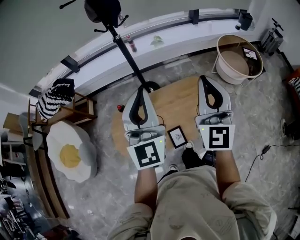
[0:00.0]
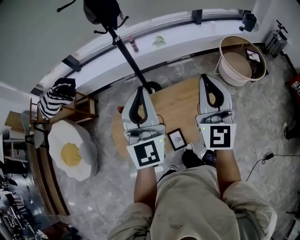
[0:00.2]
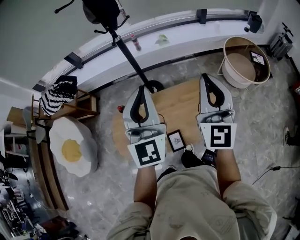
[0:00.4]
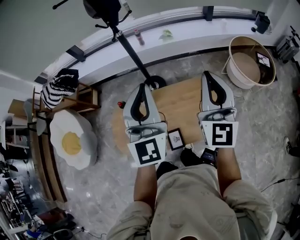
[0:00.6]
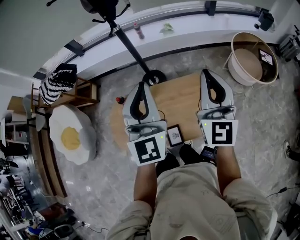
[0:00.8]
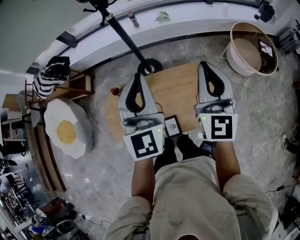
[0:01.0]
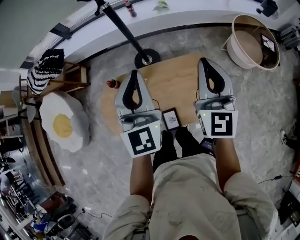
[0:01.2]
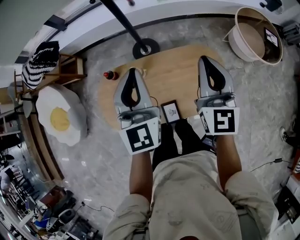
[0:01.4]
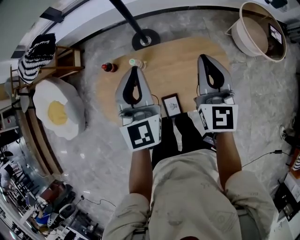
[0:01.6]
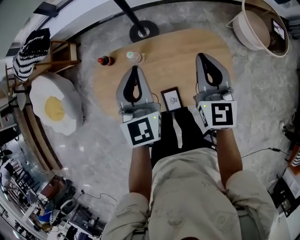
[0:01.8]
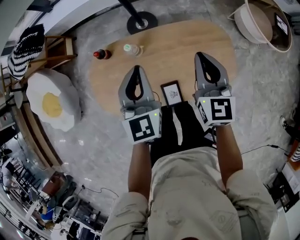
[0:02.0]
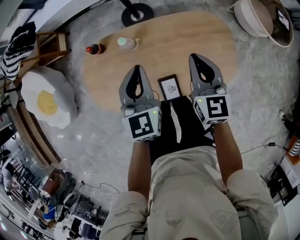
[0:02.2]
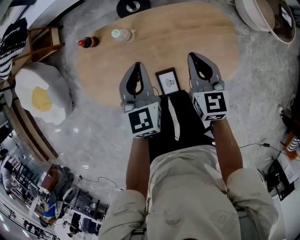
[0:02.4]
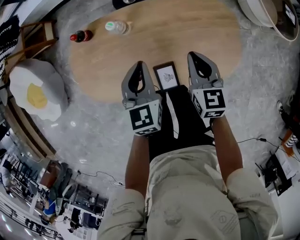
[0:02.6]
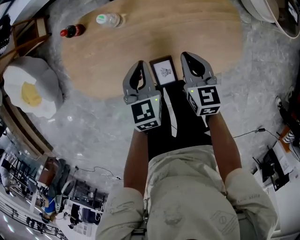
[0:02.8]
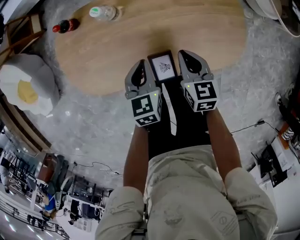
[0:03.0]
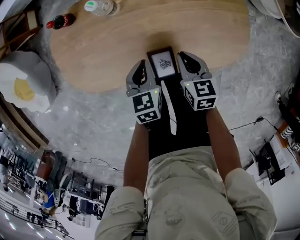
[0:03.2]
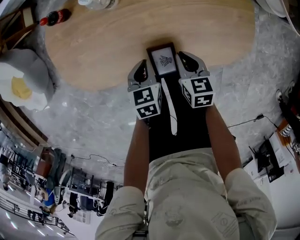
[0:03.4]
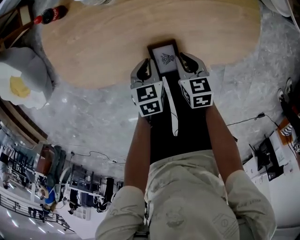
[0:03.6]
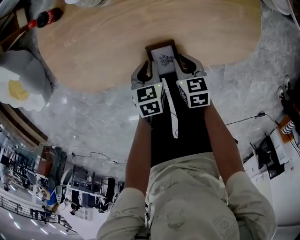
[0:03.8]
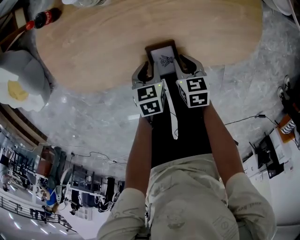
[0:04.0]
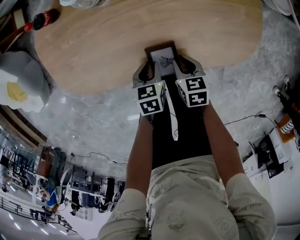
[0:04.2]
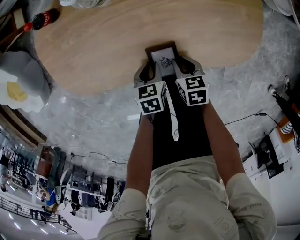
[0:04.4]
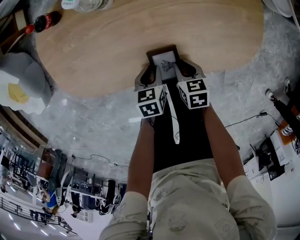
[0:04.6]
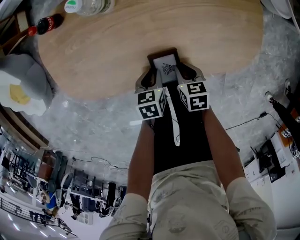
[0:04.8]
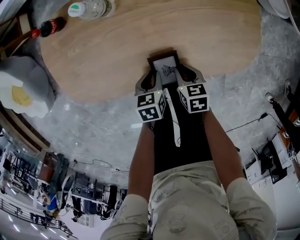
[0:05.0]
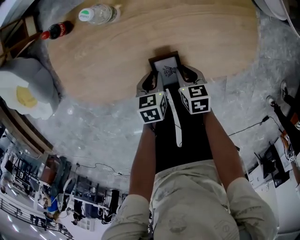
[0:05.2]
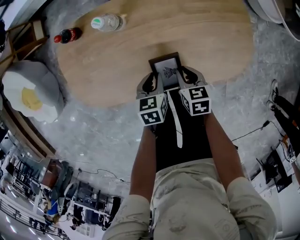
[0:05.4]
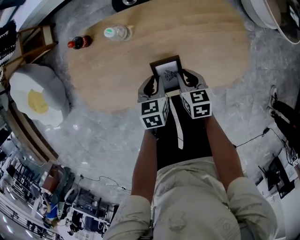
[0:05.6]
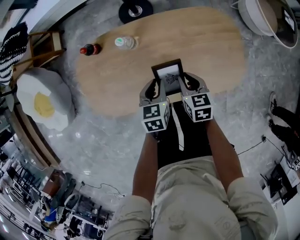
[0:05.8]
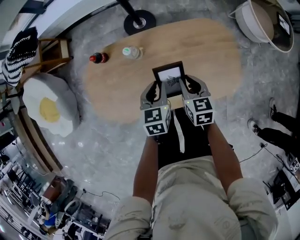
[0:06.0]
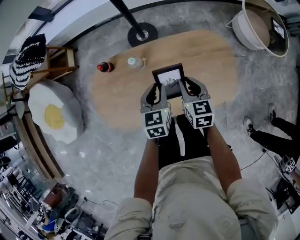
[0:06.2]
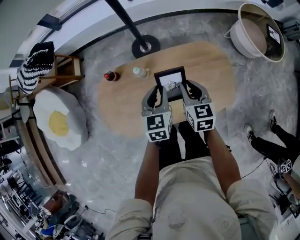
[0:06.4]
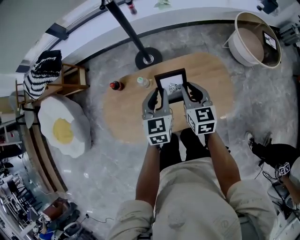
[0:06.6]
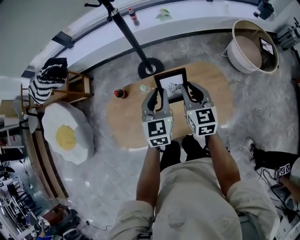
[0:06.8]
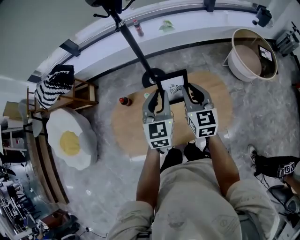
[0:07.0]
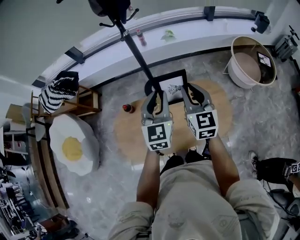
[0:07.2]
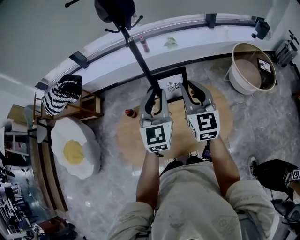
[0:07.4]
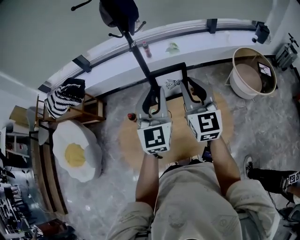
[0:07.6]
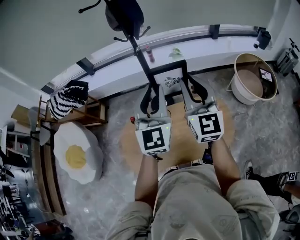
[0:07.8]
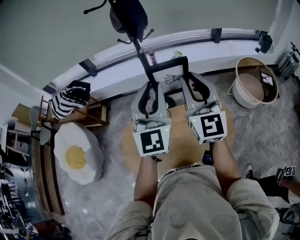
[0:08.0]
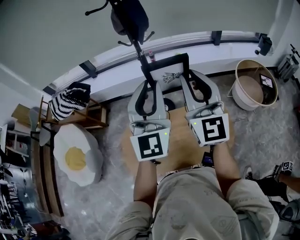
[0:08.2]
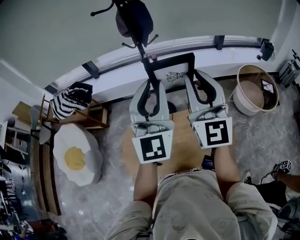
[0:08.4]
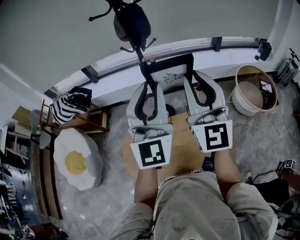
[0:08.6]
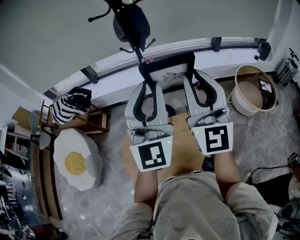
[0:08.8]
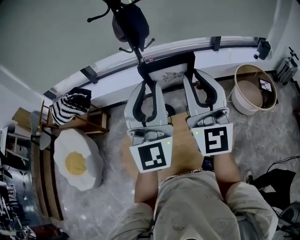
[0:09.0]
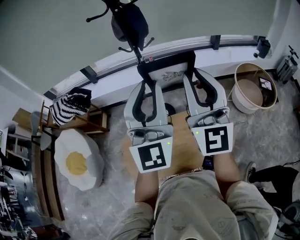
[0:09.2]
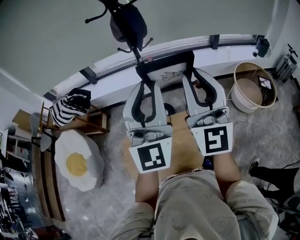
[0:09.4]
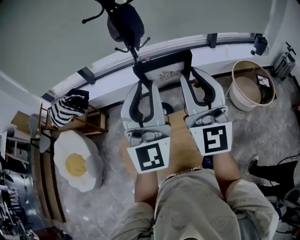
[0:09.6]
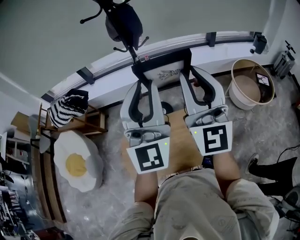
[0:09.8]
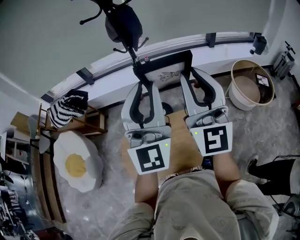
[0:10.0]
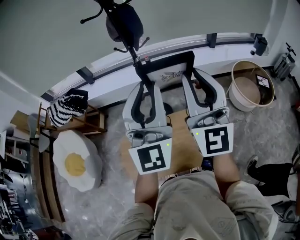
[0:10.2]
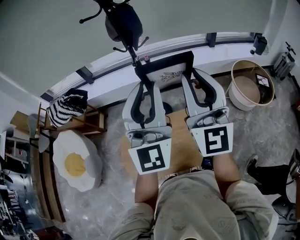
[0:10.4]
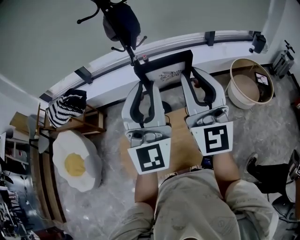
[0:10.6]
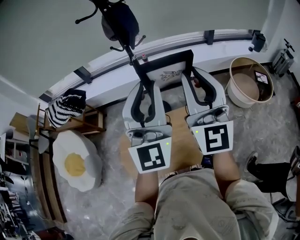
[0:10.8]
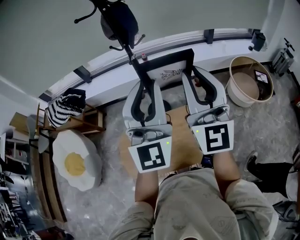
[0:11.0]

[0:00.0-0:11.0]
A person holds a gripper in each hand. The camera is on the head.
0.0 to 1.6 s: Both grippers move downward and forward, roughly 20 cm. The right gripper swivels approximately 20 degrees; the left gripper turns by approximately 20 degrees.
1.6 to 3.2 s: Both grippers travel together downward, about 40 cm. The left gripper angles its fingers downward, by roughly 40 degrees, while the right gripper angles its fingers downward, by roughly 40 degrees.
3.2 to 4.8 s: The two grippers go approximately 15 cm downward and backward. The left gripper rotates some 20 degrees, and opens. Meanwhile the right gripper turns by roughly 20 degrees.
4.8 to 6.2 s: The two grippers go about 35 cm upward and forward. The left gripper turns by about 40 degrees; the right gripper swivels about 30 degrees.
6.2 to 7.8 s: Both grippers travel together upward, approximately 40 cm. The left gripper tips its fingers upward by roughly 40 degrees. The right gripper angles its fingers upward, by some 50 degrees.
7.8 to 9.4 s: The two grippers go roughly 15 cm upward.
9.4 to 11.0 s: There are only small adjustments of the grippers.

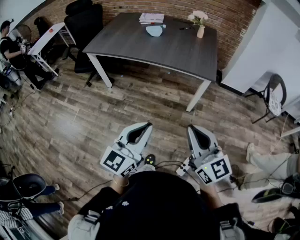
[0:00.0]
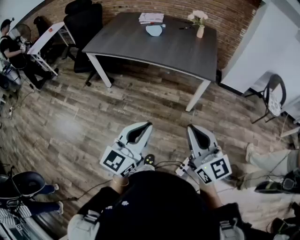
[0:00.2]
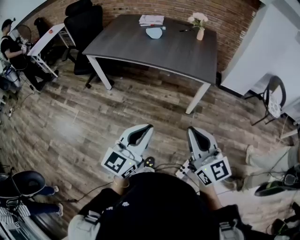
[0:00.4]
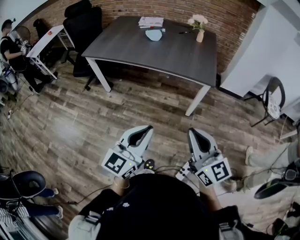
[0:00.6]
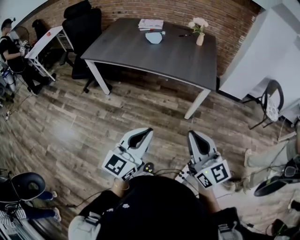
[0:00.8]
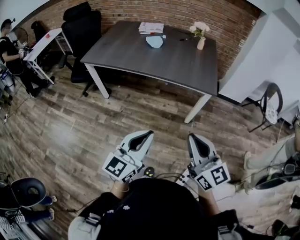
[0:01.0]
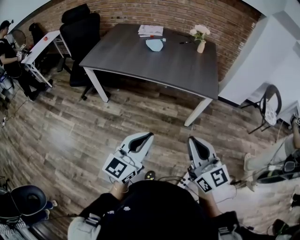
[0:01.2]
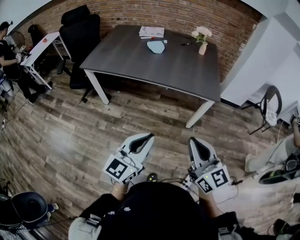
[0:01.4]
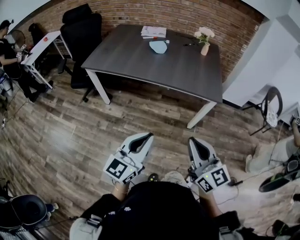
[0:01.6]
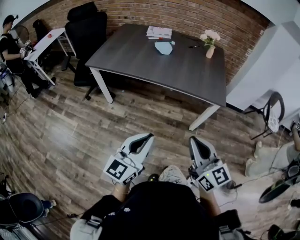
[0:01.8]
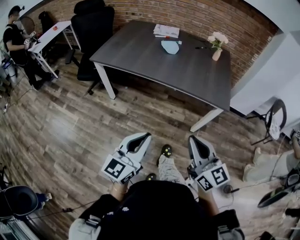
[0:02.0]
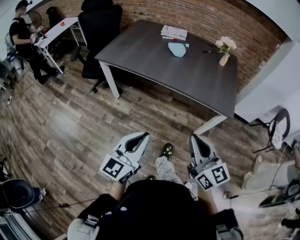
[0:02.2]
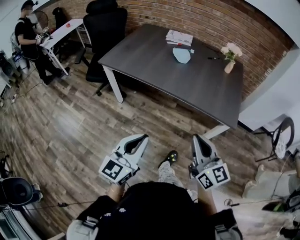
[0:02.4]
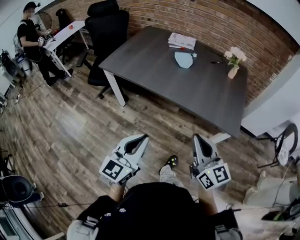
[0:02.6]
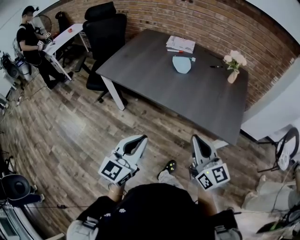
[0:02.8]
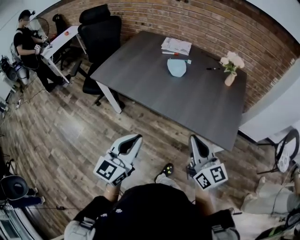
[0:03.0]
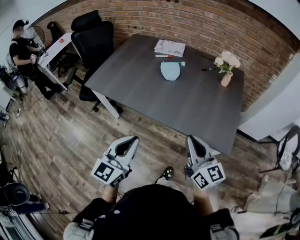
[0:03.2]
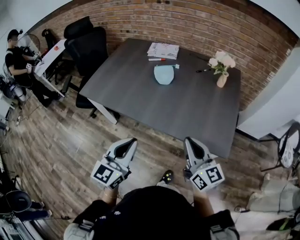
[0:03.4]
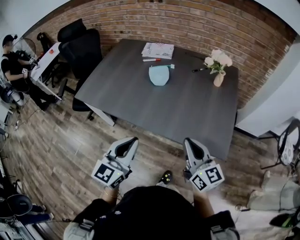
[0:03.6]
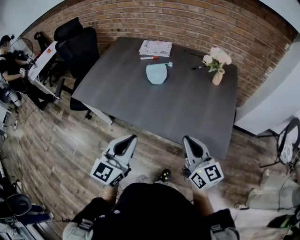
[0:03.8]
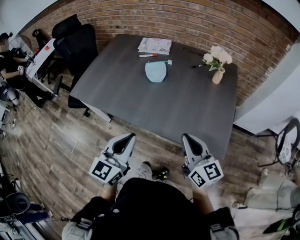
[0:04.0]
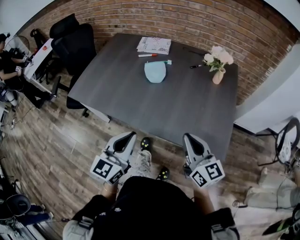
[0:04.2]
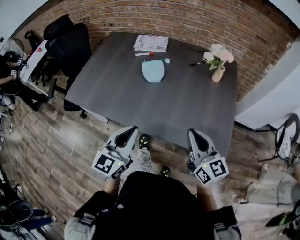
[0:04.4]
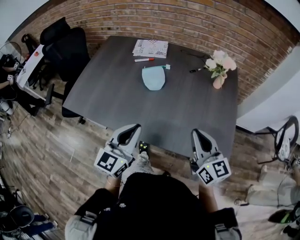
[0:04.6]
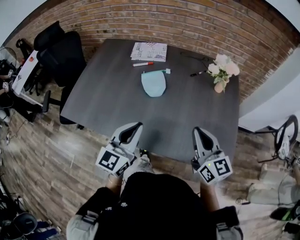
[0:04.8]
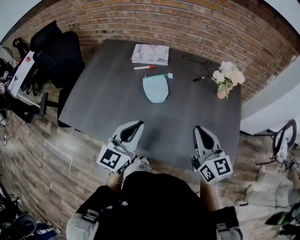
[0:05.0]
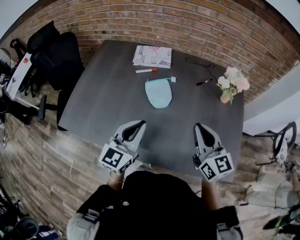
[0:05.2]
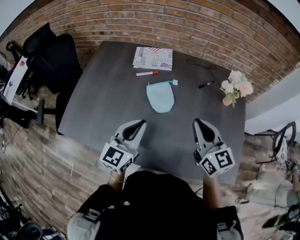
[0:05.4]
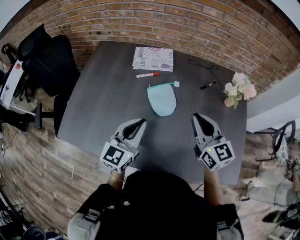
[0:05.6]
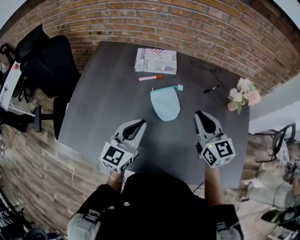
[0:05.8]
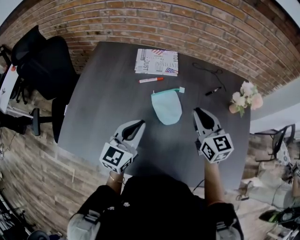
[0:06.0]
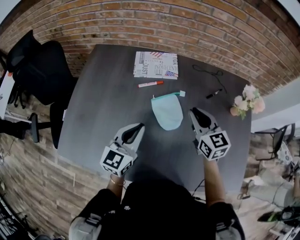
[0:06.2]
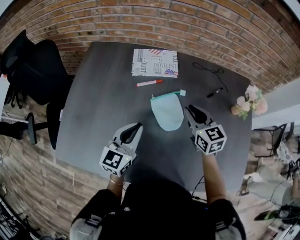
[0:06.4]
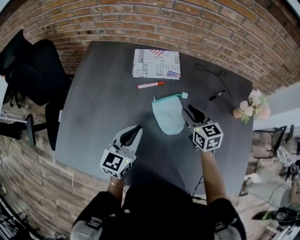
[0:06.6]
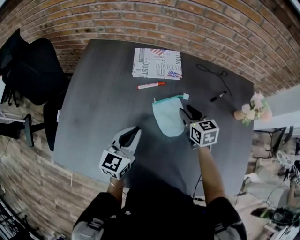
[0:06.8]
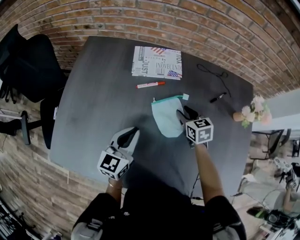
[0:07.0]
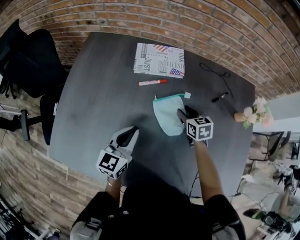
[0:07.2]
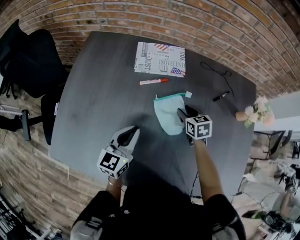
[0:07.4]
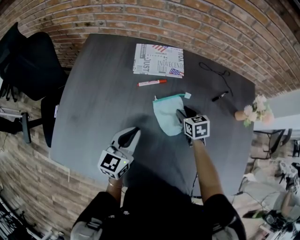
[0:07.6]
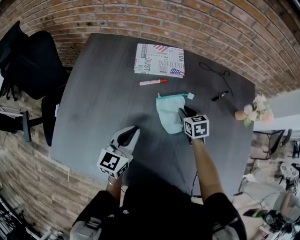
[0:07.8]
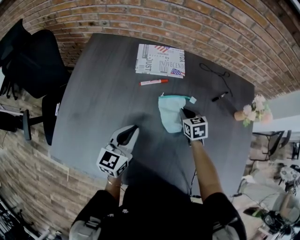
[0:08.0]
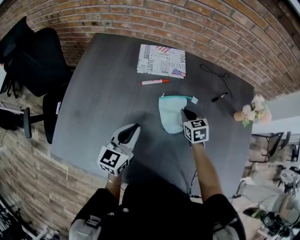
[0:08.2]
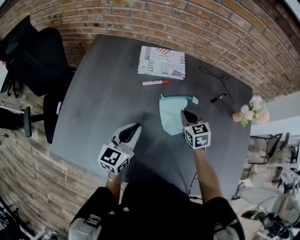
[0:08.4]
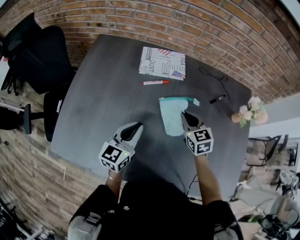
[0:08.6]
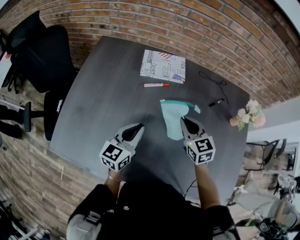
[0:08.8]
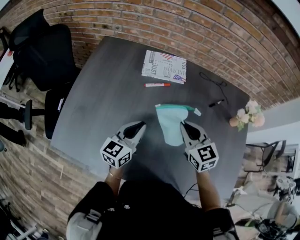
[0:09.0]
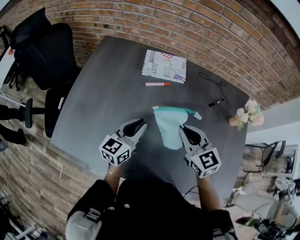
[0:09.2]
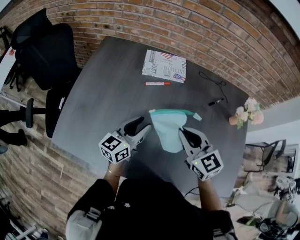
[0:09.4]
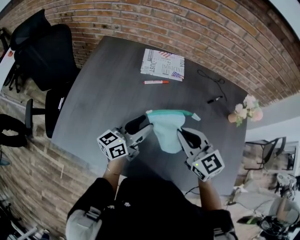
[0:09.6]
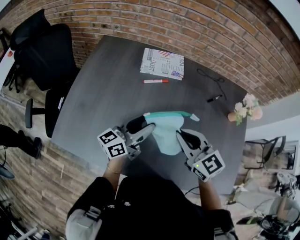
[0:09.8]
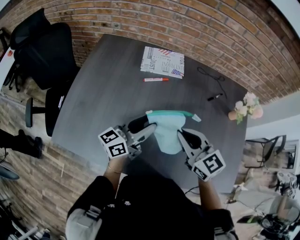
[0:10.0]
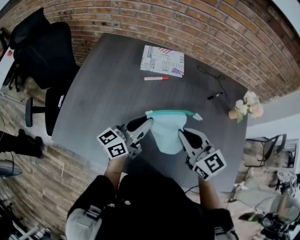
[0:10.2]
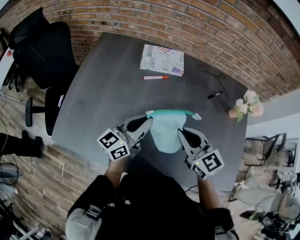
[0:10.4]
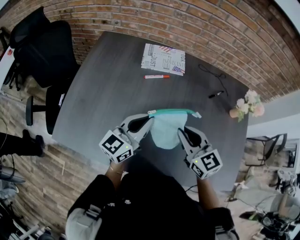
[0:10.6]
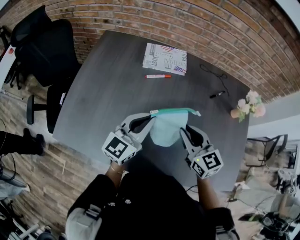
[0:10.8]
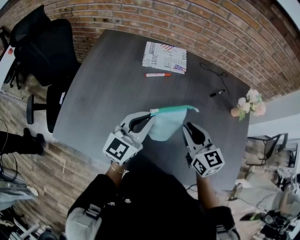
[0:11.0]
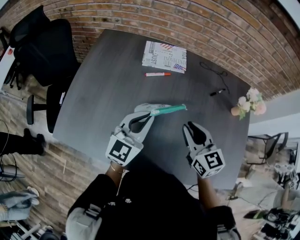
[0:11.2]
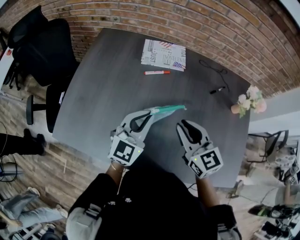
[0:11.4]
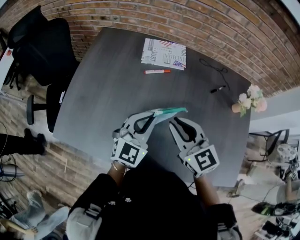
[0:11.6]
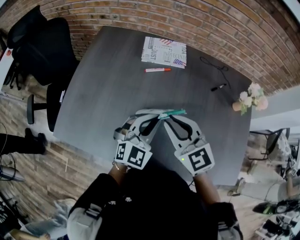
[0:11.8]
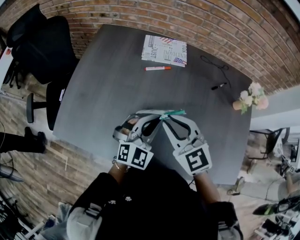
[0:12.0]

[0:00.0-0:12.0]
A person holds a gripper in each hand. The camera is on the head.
0.0 to 1.6 s: The right gripper travels to the left and forward by about 15 cm. Meanwhile the left gripper heads forward and to the left, covering some 15 cm.
1.6 to 3.0 s: The grippers both shift forward by about 25 cm.
3.0 to 4.4 s: The left gripper shifts roughly 20 cm forward; the right gripper is displaced forward and to the right by approximately 20 cm.
4.4 to 6.0 s: Both grippers travel together forward and to the left, some 40 cm.
6.0 to 7.6 s: The right gripper is displaced downward and forward by some 25 cm, tips its fingers downward by roughly 30 degrees, and opens up, while the left gripper is displaced downward and forward by about 10 cm.
7.6 to 9.0 s: The right gripper goes approximately 20 cm upward and backward, rotates approximately 30 degrees, and closes its fingers.
9.0 to 10.4 s: The left gripper moves upward, approximately 5 cm, turns by roughly 20 degrees, and opens, then closes once more. The right gripper goes roughly 10 cm backward.
10.4 to 12.0 s: The right gripper is displaced to the left by some 5 cm. The left gripper shifts by approximately 5 cm, and rotates around the line of its fingers by some 60 degrees, clockwise from behind.

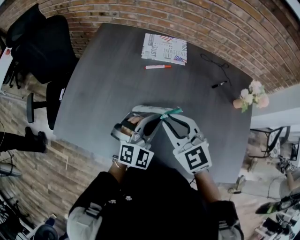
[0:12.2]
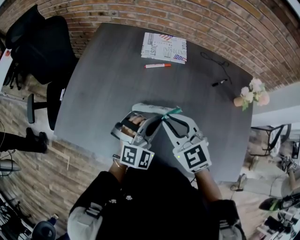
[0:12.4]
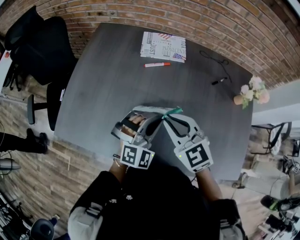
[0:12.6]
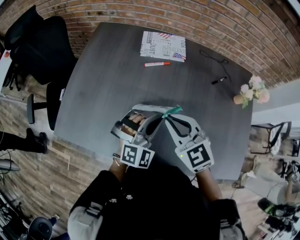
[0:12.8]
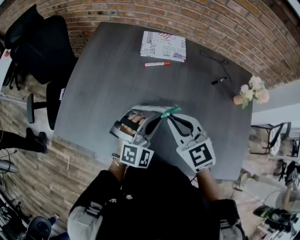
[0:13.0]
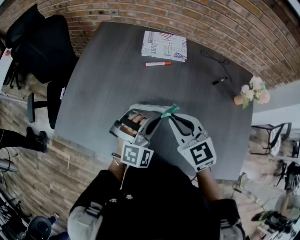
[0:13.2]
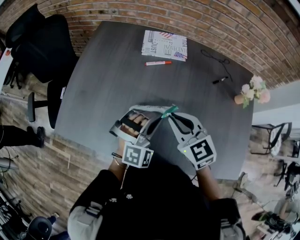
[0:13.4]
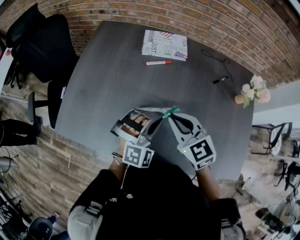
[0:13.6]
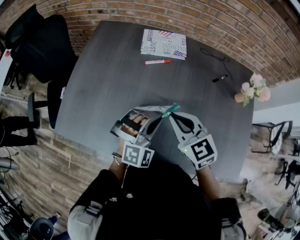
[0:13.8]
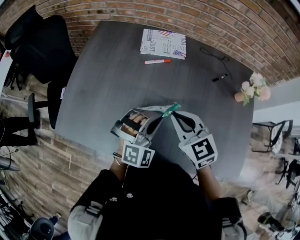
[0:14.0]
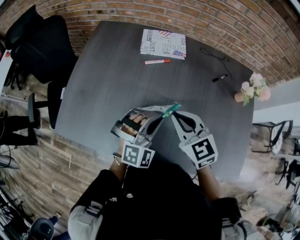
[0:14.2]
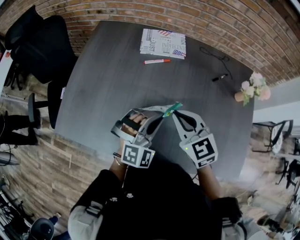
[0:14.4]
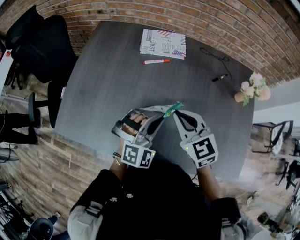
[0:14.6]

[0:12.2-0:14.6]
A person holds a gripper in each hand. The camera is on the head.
12.2 to 14.6 s: The grippers stay close to where they were, moving slightly.
